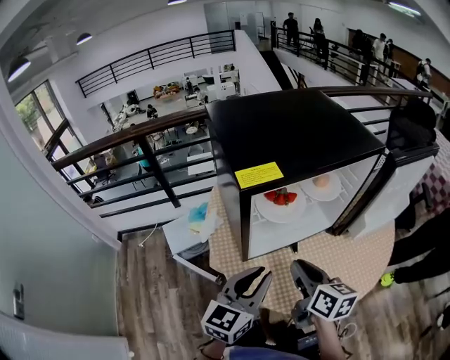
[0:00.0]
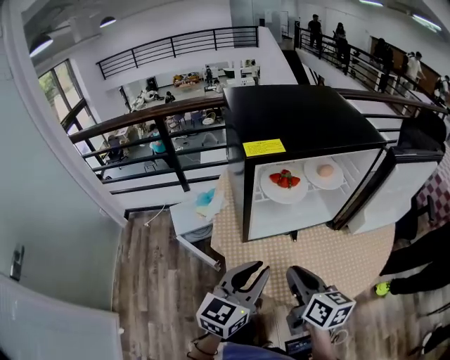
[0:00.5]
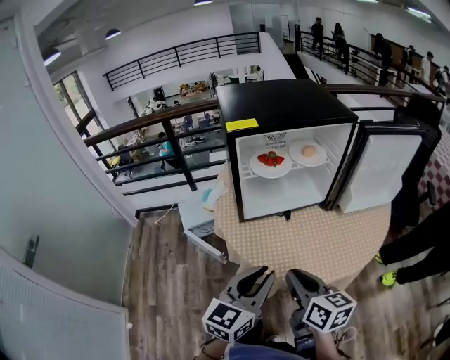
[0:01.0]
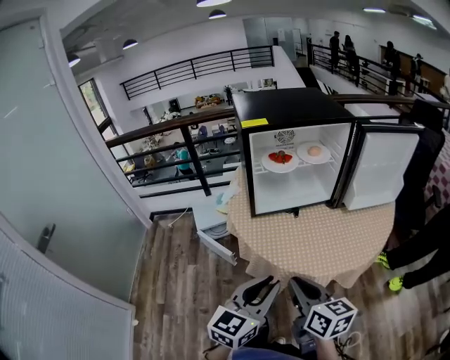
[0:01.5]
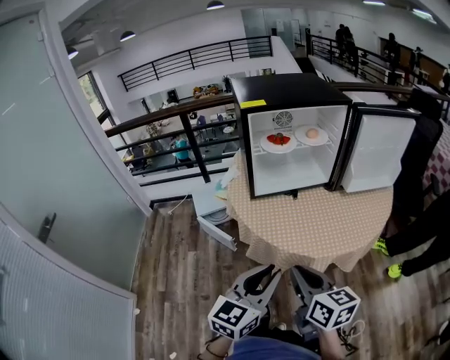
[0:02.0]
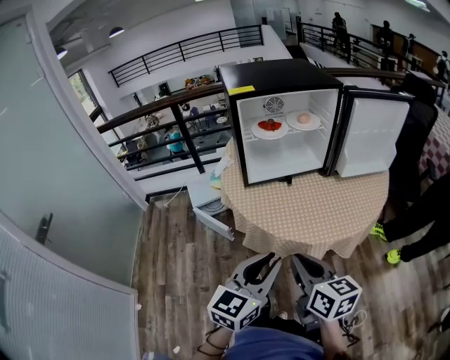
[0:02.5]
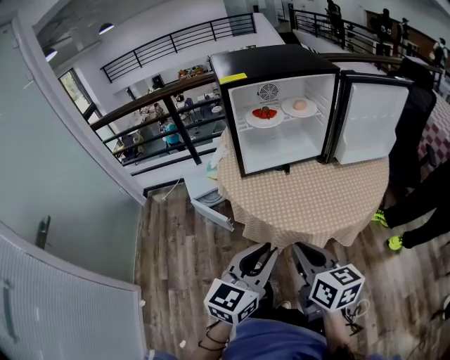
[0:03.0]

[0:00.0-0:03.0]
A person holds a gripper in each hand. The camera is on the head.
0:00.0 to 0:01.5: The grippers both shift backward by some 30 cm.
0:01.5 to 0:03.0: The grippers stay close to where they were, moving slightly.

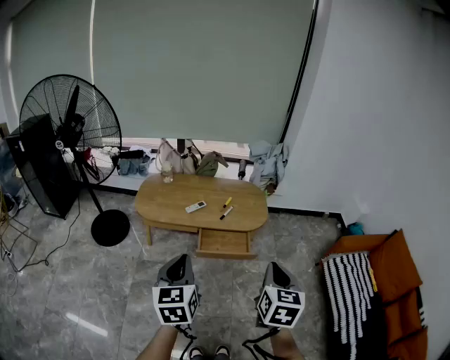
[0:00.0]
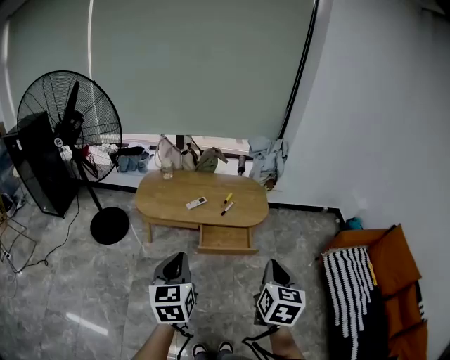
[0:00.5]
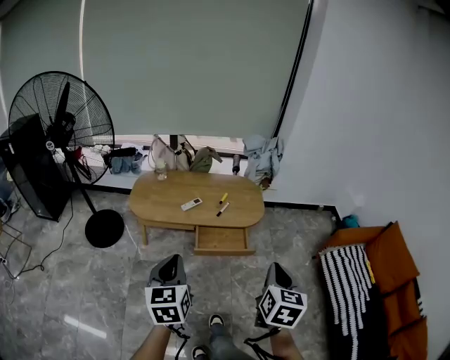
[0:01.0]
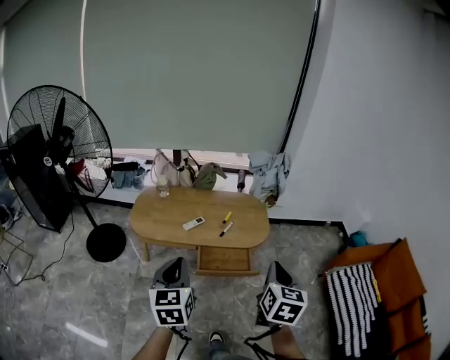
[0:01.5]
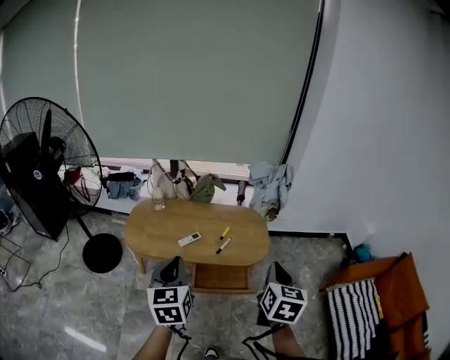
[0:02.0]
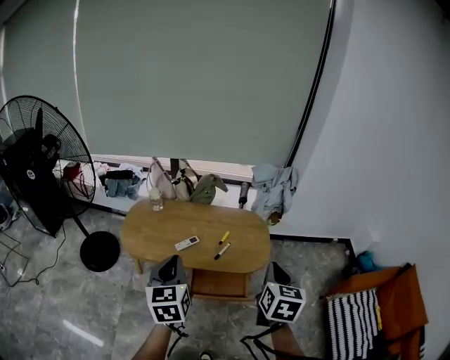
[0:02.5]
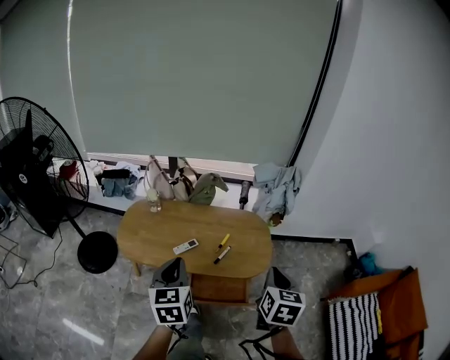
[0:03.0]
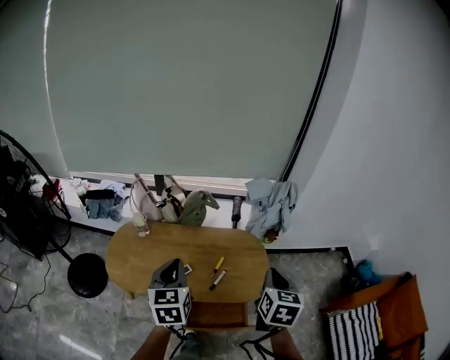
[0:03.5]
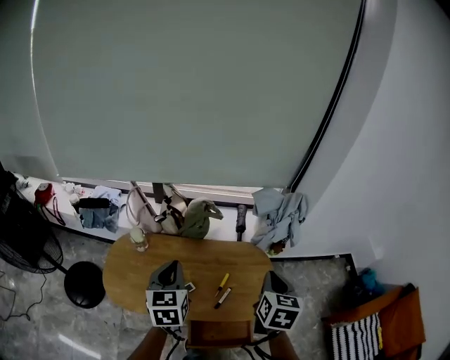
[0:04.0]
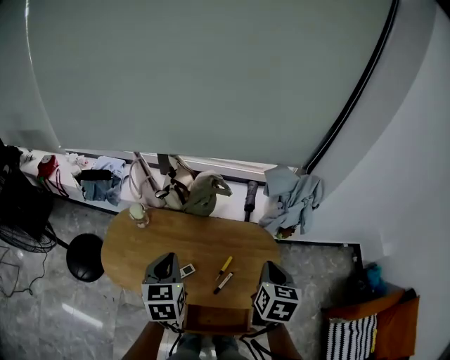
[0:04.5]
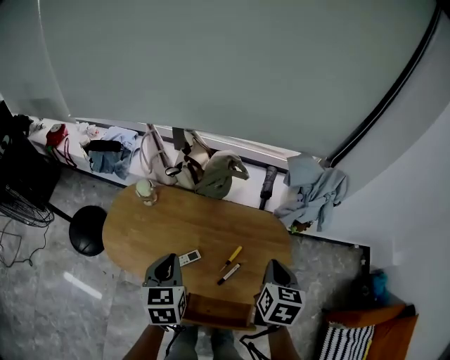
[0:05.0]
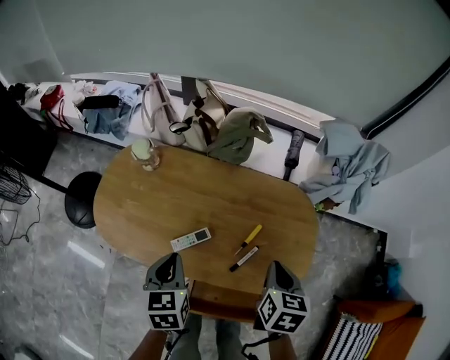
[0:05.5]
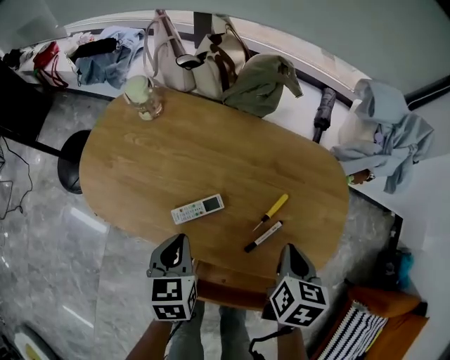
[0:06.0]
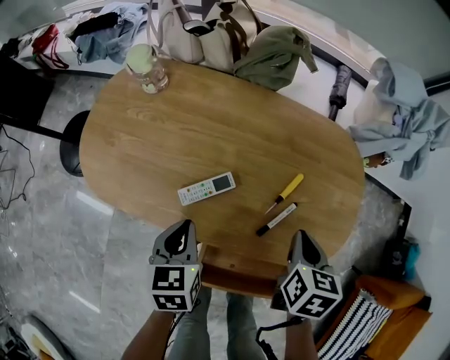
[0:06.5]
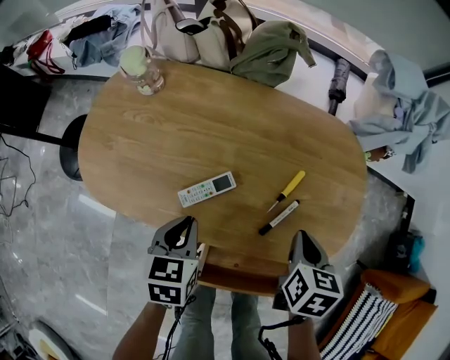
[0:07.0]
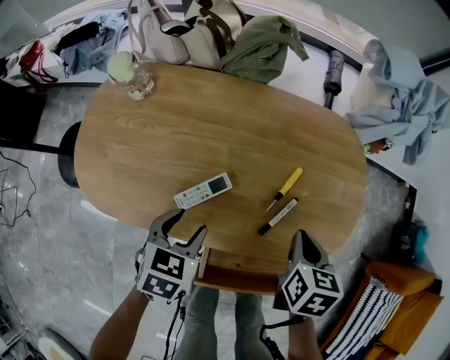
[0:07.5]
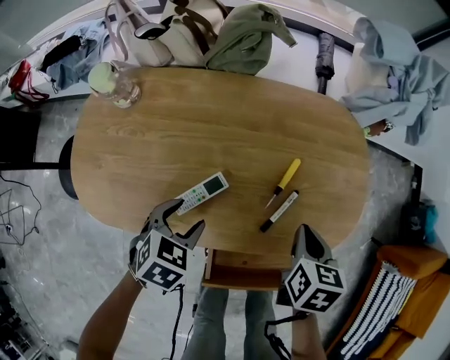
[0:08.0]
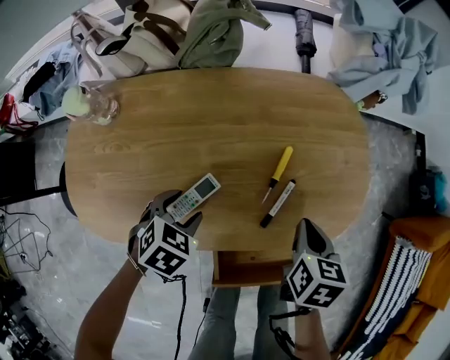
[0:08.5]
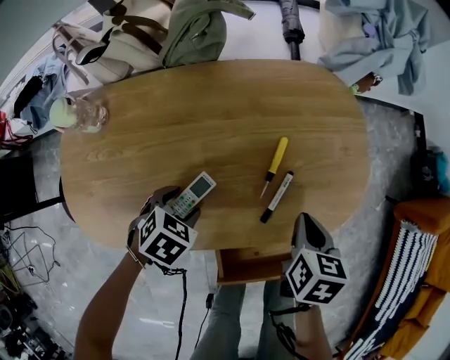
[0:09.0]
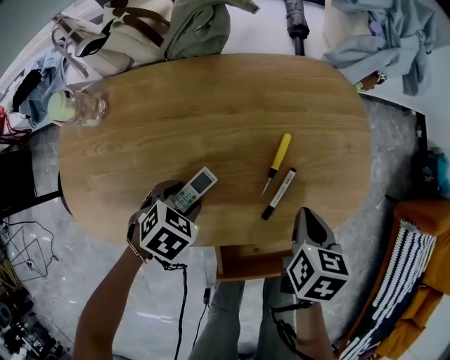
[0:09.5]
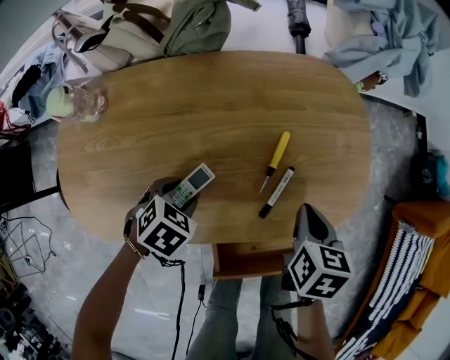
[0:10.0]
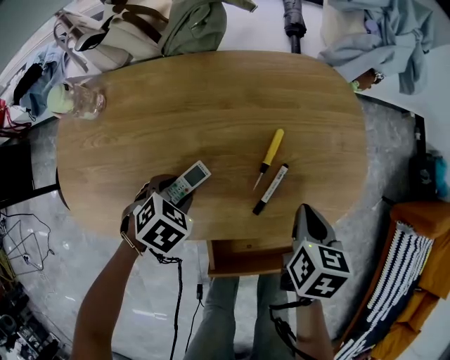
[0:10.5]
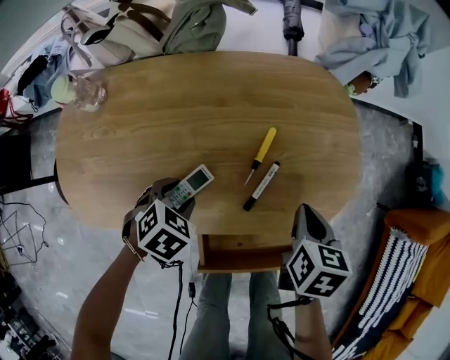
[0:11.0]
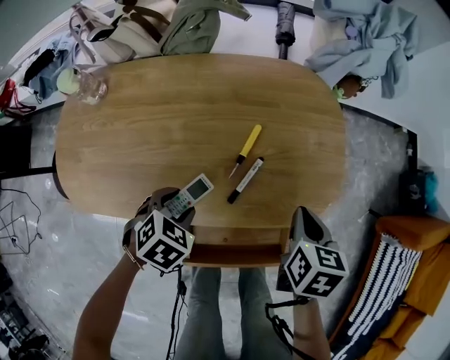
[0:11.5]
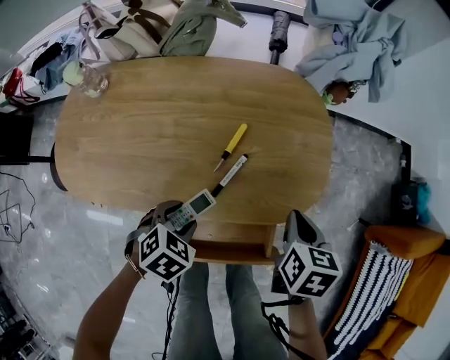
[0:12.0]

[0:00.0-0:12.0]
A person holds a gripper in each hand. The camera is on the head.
0:00.0 to 0:02.0: The two grippers go roughly 20 cm forward.
0:02.0 to 0:04.0: The two grippers go roughly 40 cm forward.
0:04.0 to 0:06.0: Both grippers travel together downward, roughly 40 cm. The left gripper changes its angle by roughly 30 degrees; the right gripper changes its angle by about 30 degrees.
0:06.0 to 0:08.0: Both grippers travel together downward, some 5 cm. The left gripper twists roughly 40 degrees clockwise, seen from behind, and opens.
0:08.0 to 0:10.0: The left gripper travels downward by approximately 5 cm, and changes its angle by about 20 degrees.
0:10.0 to 0:12.0: The left gripper changes place by roughly 20 cm; the right gripper ends up approximately 10 cm from where it was.

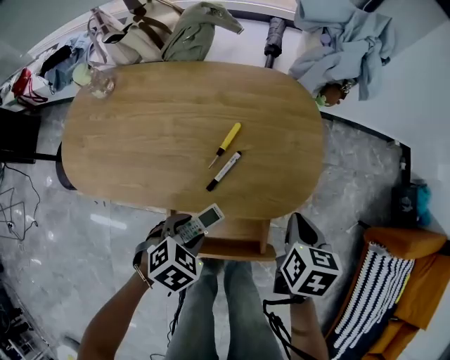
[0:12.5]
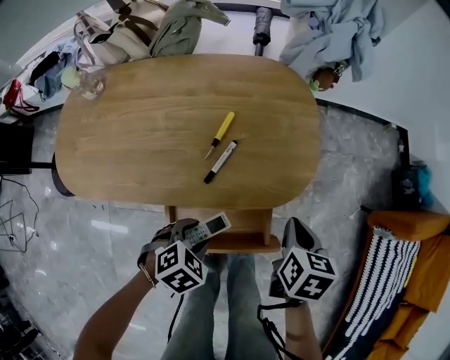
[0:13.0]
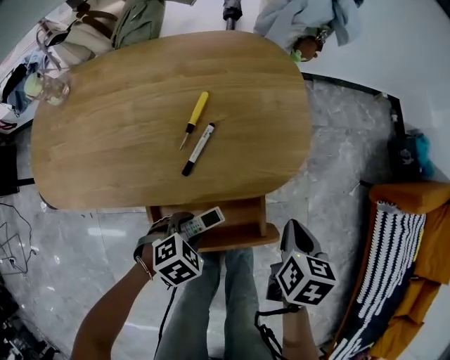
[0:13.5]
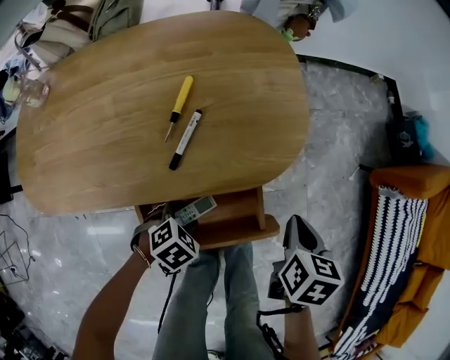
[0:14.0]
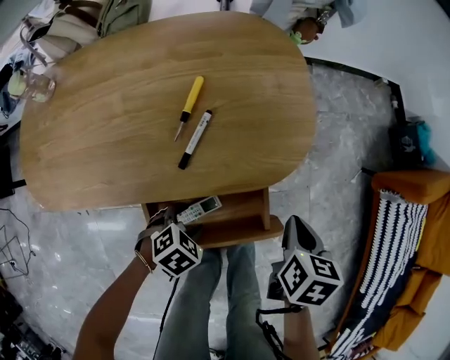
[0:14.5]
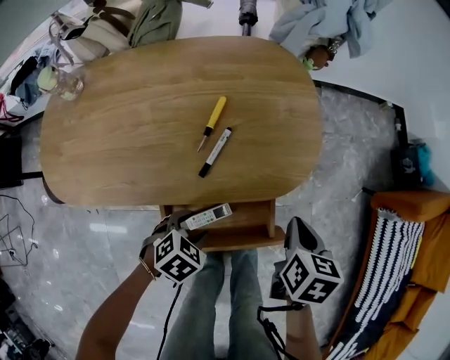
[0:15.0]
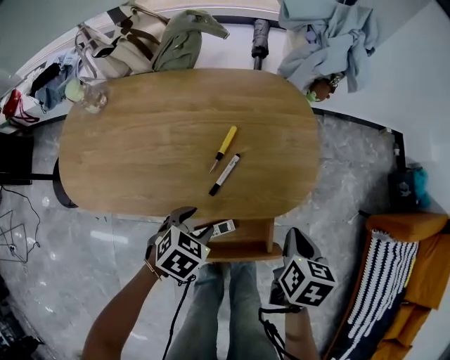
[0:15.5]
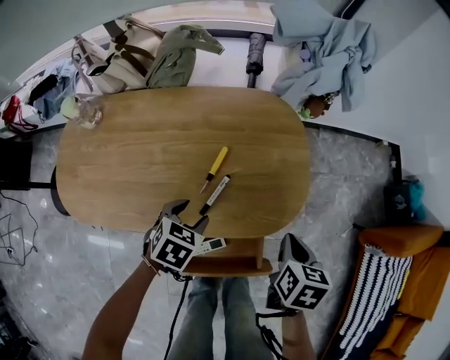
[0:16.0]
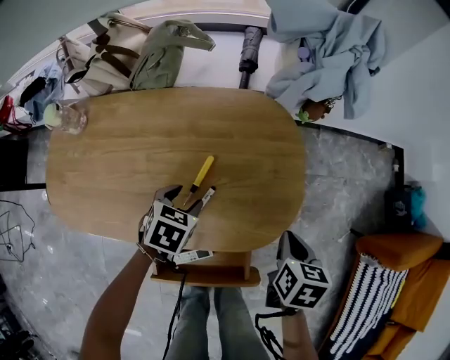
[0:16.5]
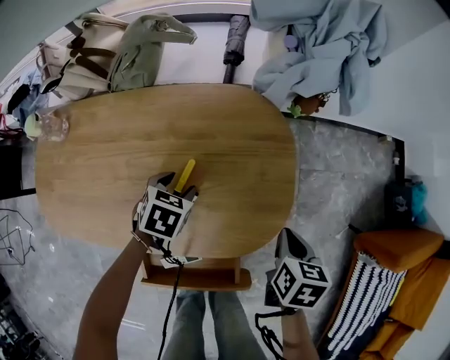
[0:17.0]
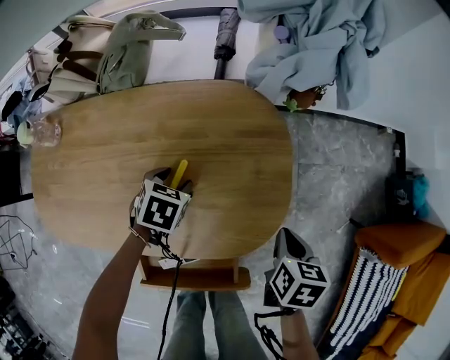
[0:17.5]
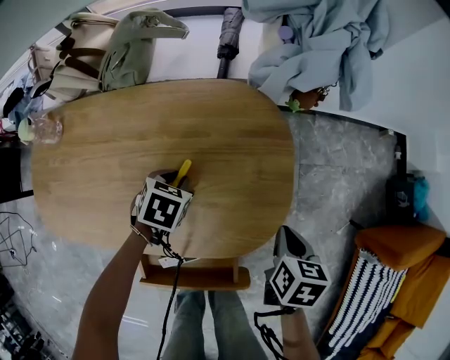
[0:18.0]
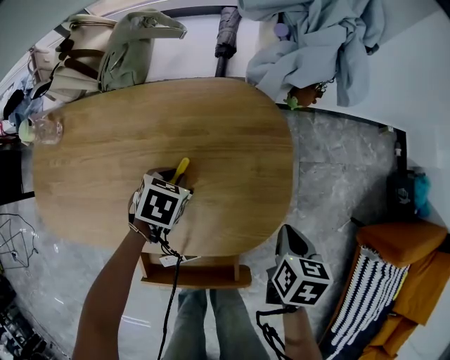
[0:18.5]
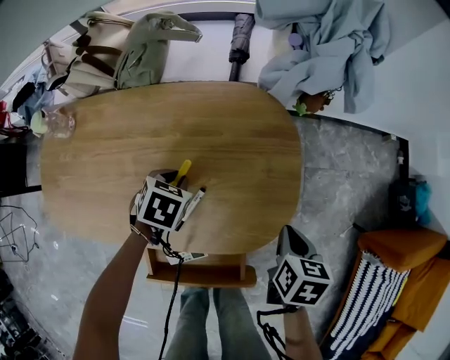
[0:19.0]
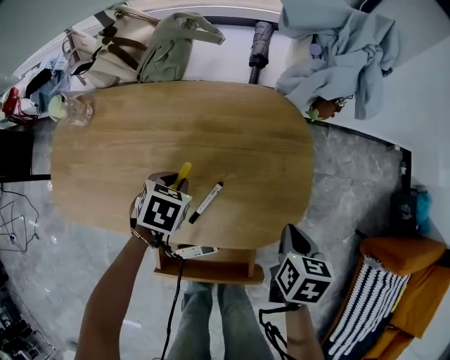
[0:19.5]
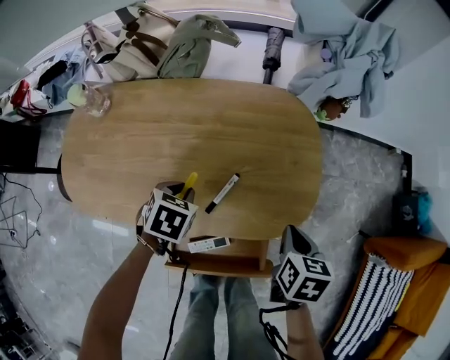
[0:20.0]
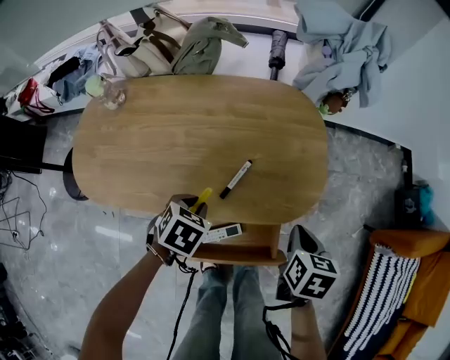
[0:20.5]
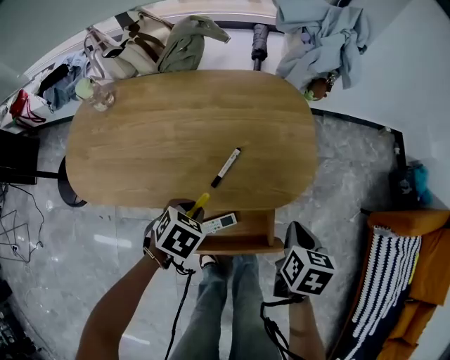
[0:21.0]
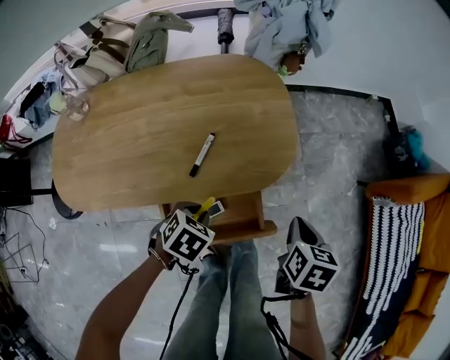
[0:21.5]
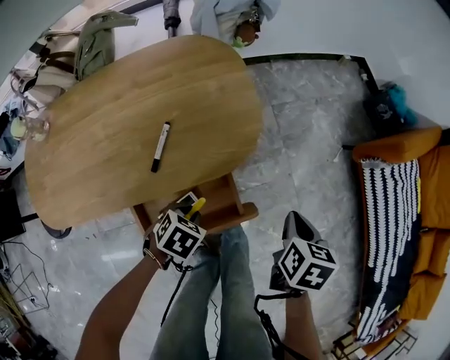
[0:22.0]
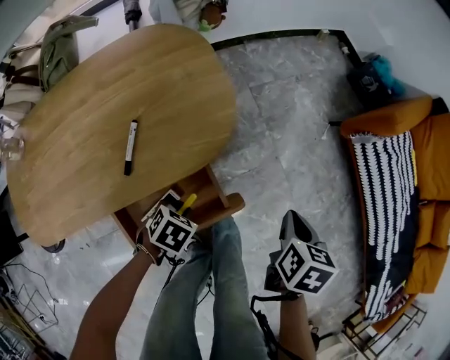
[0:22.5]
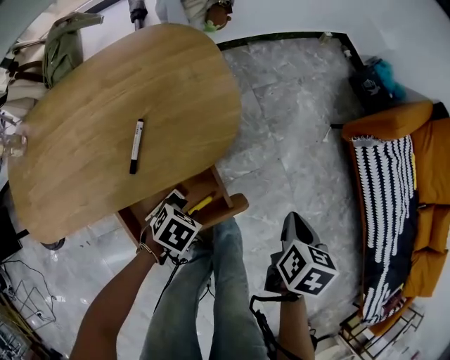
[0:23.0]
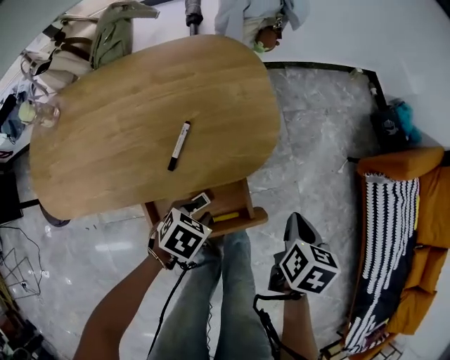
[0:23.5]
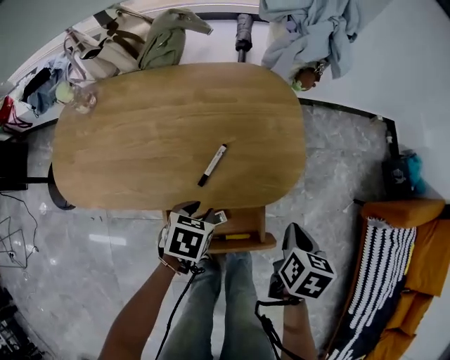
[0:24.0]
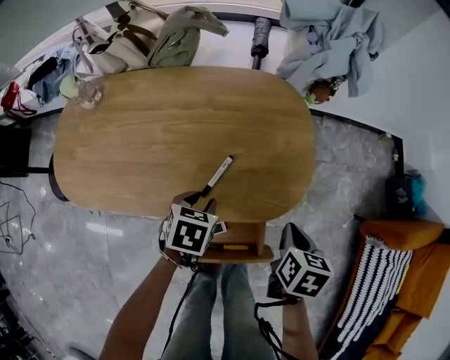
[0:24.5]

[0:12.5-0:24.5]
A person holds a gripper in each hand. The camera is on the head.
0:12.5 to 0:14.5: The right gripper moves some 15 cm, while the left gripper moves downward, approximately 15 cm.
0:14.5 to 0:16.5: The right gripper moves some 15 cm. Meanwhile the left gripper shifts by some 25 cm, and turns by approximately 40 degrees.
0:16.5 to 0:18.5: The left gripper shifts some 5 cm forward, and closes, while the right gripper ends up about 5 cm from where it was.
0:18.5 to 0:20.5: The right gripper goes roughly 15 cm backward, to the left and upward; the left gripper is displaced backward by about 20 cm.
0:20.5 to 0:22.5: The right gripper moves about 25 cm, and turns by some 30 degrees. Meanwhile the left gripper shifts by approximately 25 cm, and swivels approximately 30 degrees.
0:22.5 to 0:24.5: The left gripper moves some 20 cm, and changes its angle by roughly 40 degrees. The right gripper shifts by roughly 20 cm, and changes its angle by some 30 degrees.
